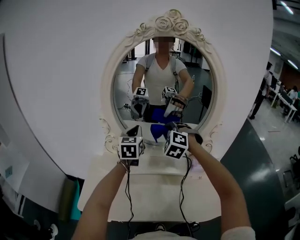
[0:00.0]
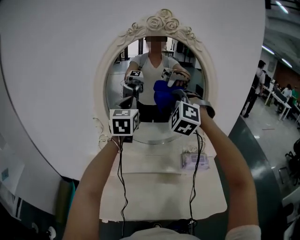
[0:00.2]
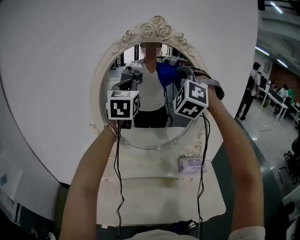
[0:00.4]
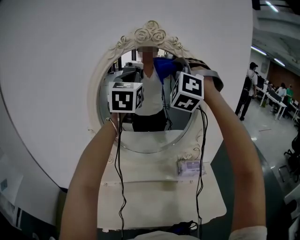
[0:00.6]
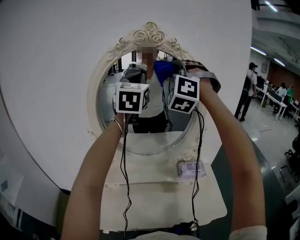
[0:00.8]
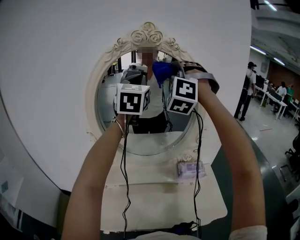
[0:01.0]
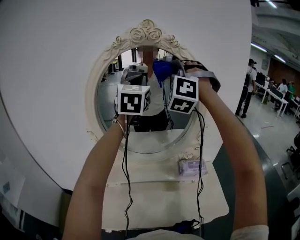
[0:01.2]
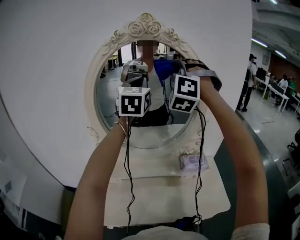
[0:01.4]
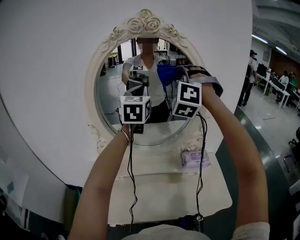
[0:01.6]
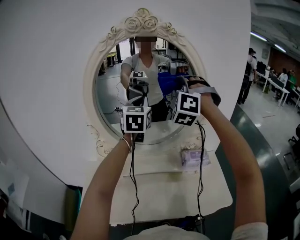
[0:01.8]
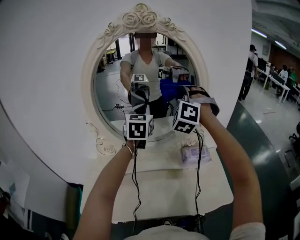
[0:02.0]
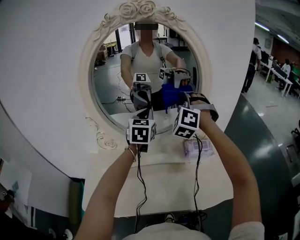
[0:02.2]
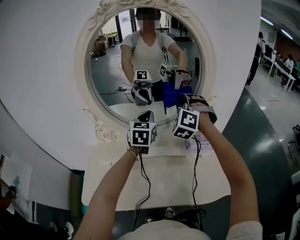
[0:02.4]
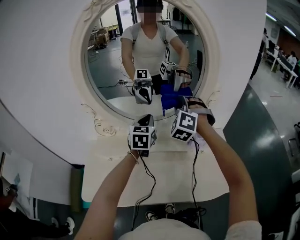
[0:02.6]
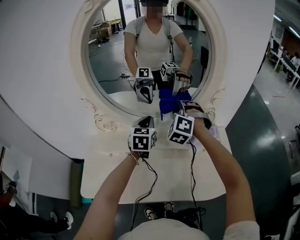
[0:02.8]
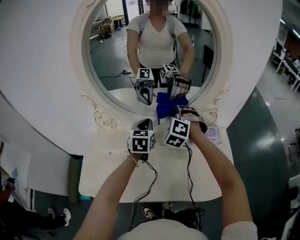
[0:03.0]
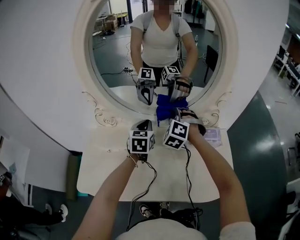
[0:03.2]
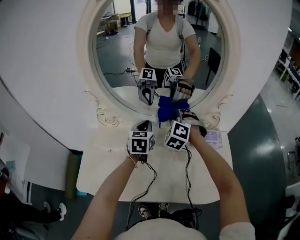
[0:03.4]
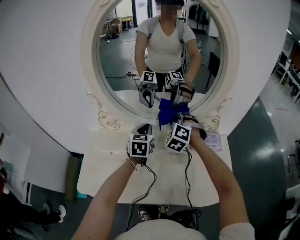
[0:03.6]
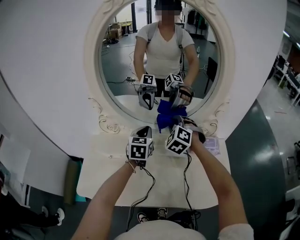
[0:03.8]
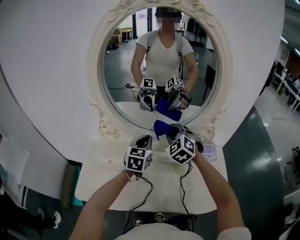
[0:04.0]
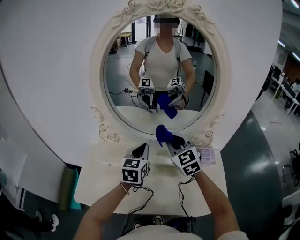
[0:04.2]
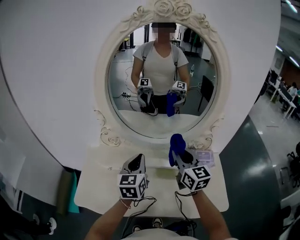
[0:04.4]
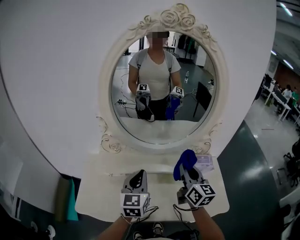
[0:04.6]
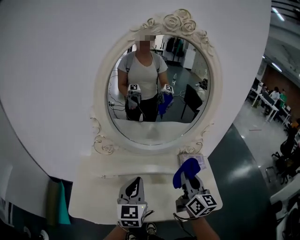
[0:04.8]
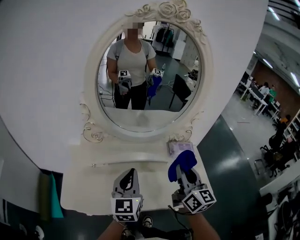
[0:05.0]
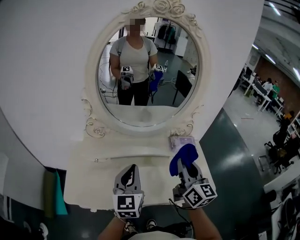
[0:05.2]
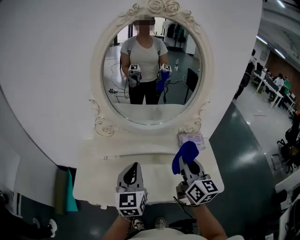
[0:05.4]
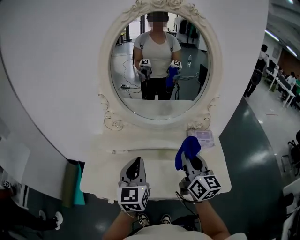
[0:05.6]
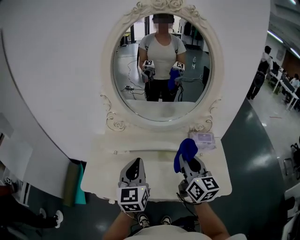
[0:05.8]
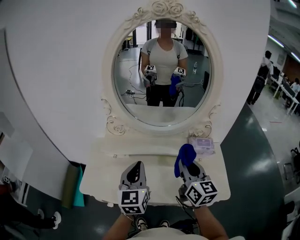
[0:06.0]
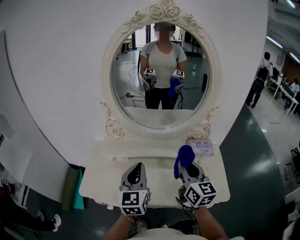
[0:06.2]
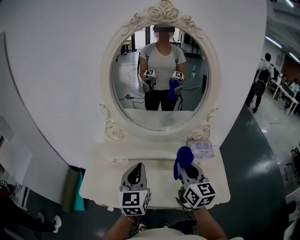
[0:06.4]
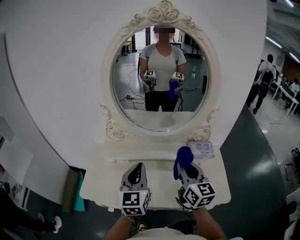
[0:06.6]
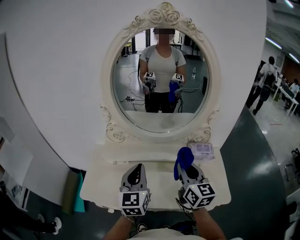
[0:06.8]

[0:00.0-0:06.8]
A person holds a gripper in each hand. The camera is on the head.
0:00.0 to 0:01.4: The right gripper is displaced upward by roughly 30 cm, and tilts its fingers some 30 degrees upward, while the left gripper is displaced upward and to the right by approximately 25 cm.
0:01.4 to 0:02.8: Both grippers travel together downward, approximately 35 cm. The right gripper changes its angle by roughly 30 degrees. Meanwhile the left gripper swivels about 30 degrees.
0:02.8 to 0:04.0: The right gripper ends up some 5 cm from where it was, and changes its angle by roughly 30 degrees.
0:04.0 to 0:05.4: The grippers both shift backward by roughly 20 cm. The right gripper rolls clockwise, seen from behind, by about 60 degrees.
0:05.4 to 0:06.8: The grippers stay close to where they were, moving slightly.

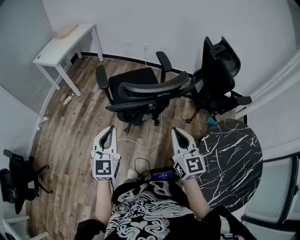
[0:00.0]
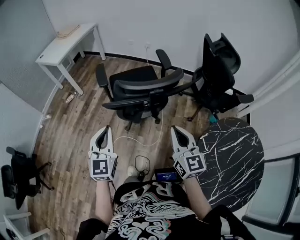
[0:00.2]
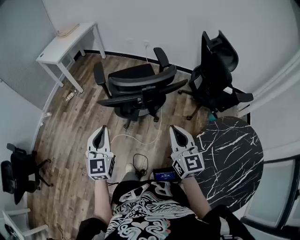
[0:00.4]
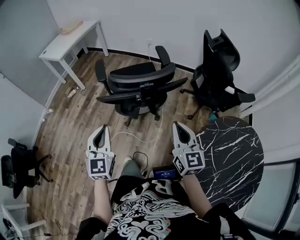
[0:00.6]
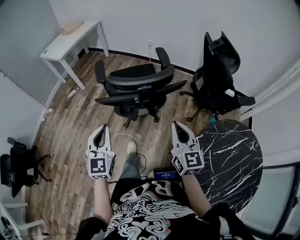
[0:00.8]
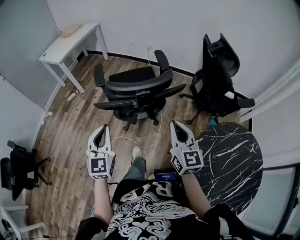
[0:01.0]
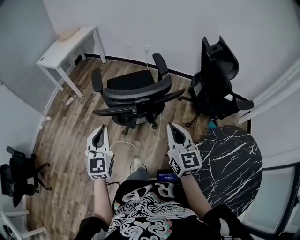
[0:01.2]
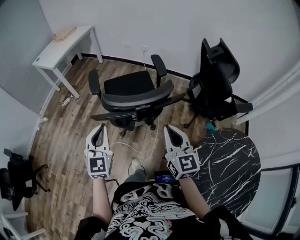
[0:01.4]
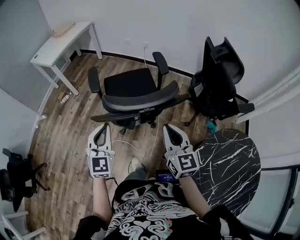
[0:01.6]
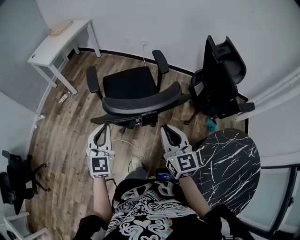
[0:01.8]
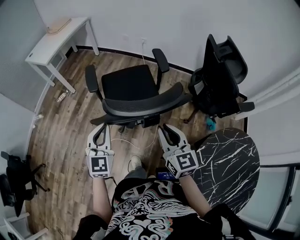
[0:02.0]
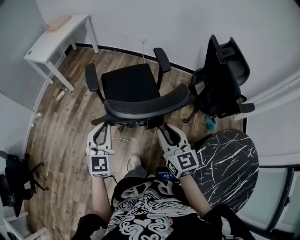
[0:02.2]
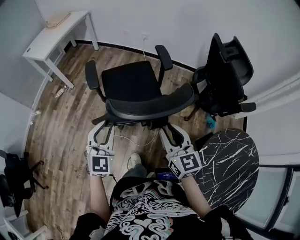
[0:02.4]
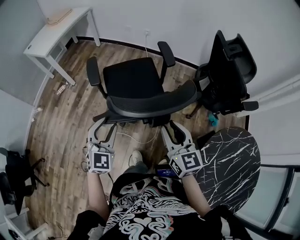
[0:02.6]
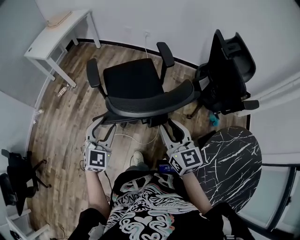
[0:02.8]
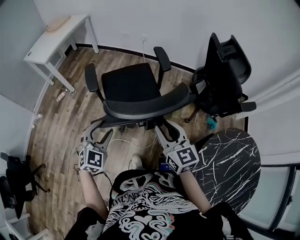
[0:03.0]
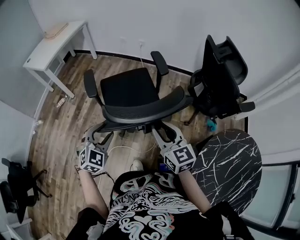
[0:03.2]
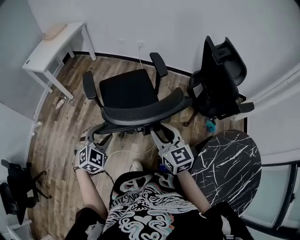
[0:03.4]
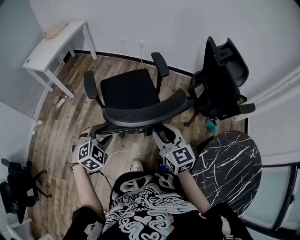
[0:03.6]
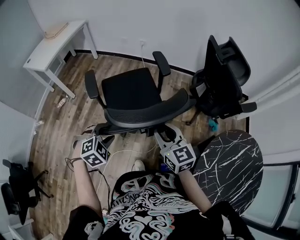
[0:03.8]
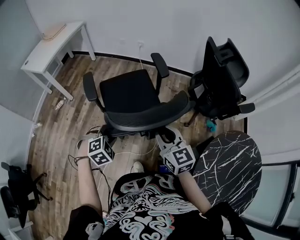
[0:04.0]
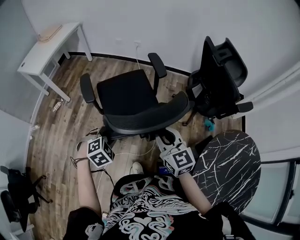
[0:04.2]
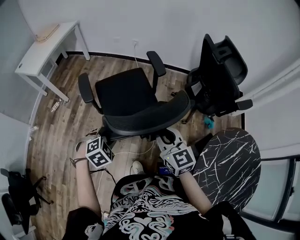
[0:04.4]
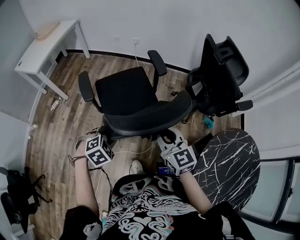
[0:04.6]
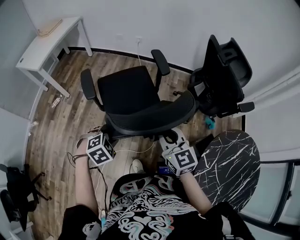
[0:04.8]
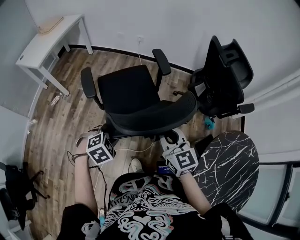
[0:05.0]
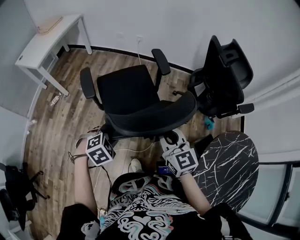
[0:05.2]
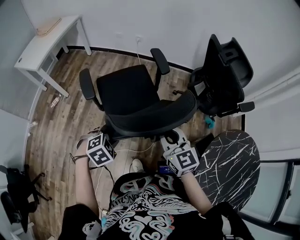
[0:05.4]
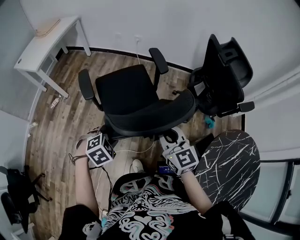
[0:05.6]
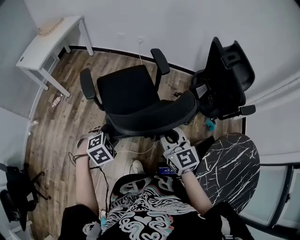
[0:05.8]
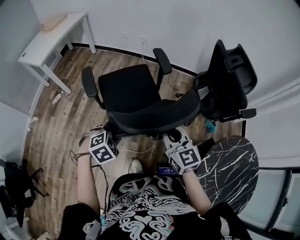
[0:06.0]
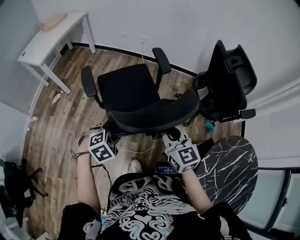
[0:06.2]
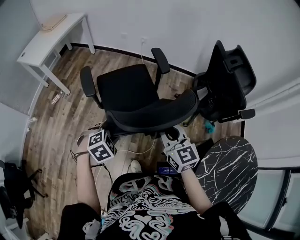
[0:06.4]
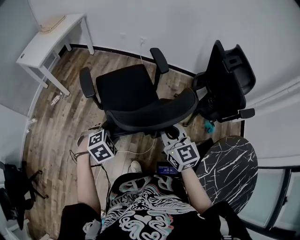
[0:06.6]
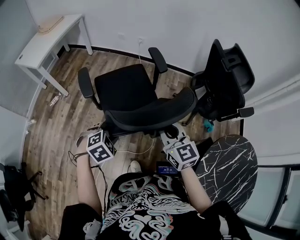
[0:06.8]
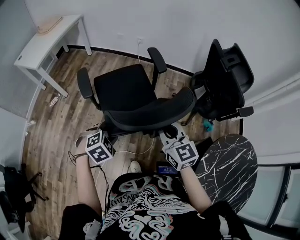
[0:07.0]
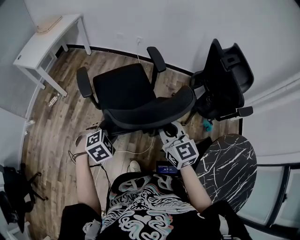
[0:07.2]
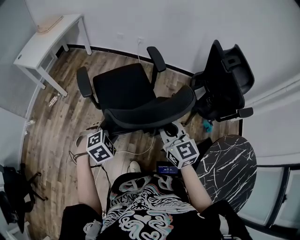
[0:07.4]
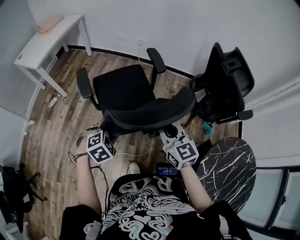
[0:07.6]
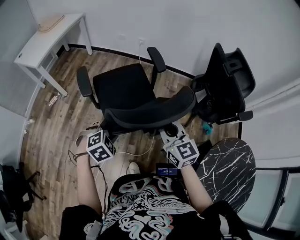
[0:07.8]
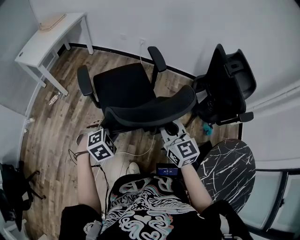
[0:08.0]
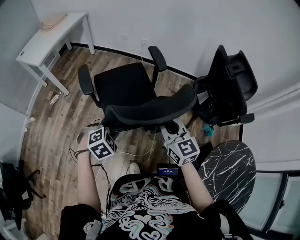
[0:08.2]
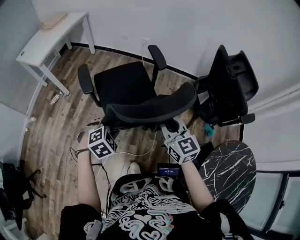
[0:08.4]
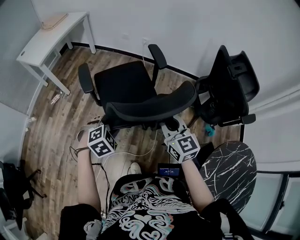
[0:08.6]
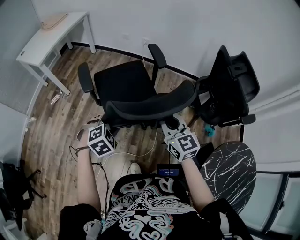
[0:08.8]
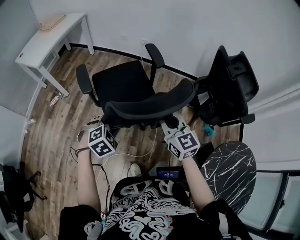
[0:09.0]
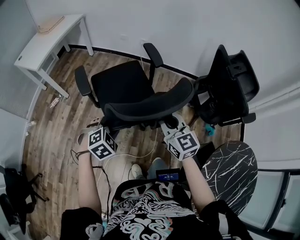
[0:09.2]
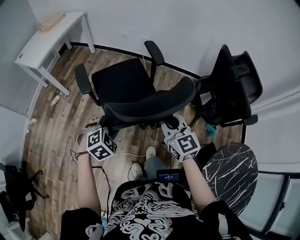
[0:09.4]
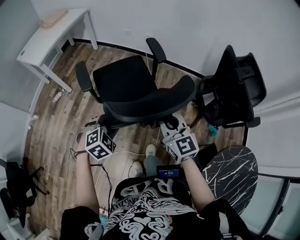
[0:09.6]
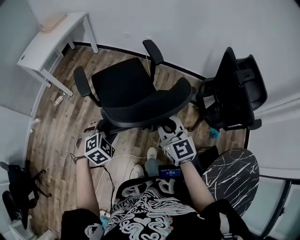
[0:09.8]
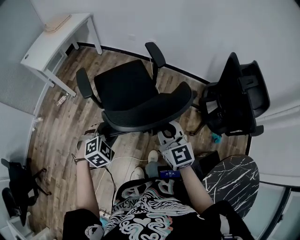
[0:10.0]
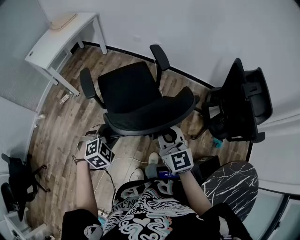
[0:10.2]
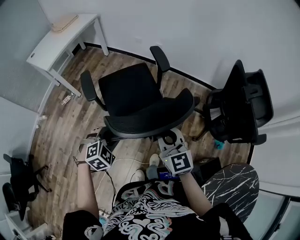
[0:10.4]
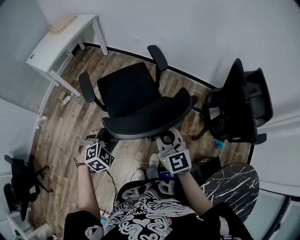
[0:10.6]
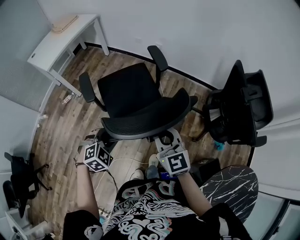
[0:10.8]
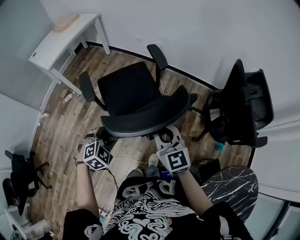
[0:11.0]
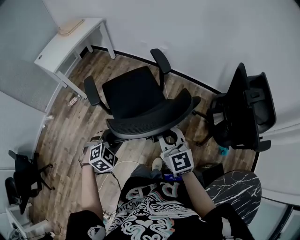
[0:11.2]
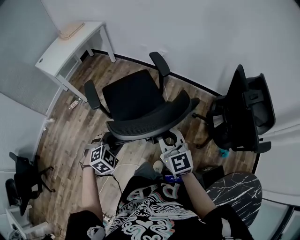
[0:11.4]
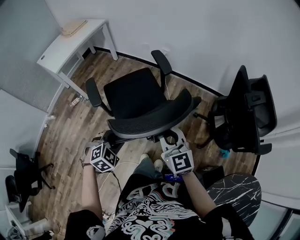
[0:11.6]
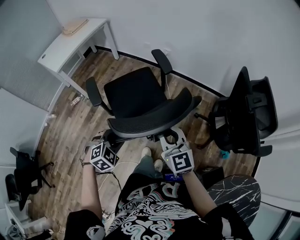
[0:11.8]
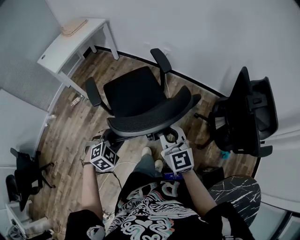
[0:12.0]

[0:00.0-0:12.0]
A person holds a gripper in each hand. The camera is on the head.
0:00.0 to 0:01.6: Both grippers move forward and to the right, roughly 10 cm.
0:01.6 to 0:03.0: The left gripper shifts approximately 10 cm downward, changes its angle by approximately 30 degrees, and opens its fingers, while the right gripper moves some 10 cm.
0:03.0 to 0:04.4: The left gripper heads downward, covering approximately 5 cm, and tilts its fingers about 40 degrees downward.
0:04.4 to 0:06.0: The grippers move only a little.
0:06.0 to 0:07.6: The grippers make only small movements.
0:07.6 to 0:09.0: The two grippers go roughly 5 cm forward.
0:09.0 to 0:10.4: The right gripper moves forward, approximately 5 cm.
0:10.4 to 0:12.0: The right gripper changes place by roughly 5 cm.

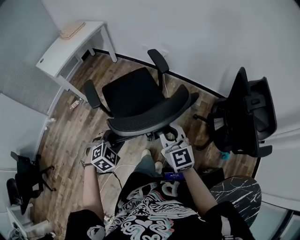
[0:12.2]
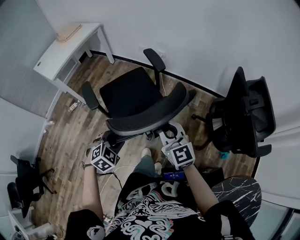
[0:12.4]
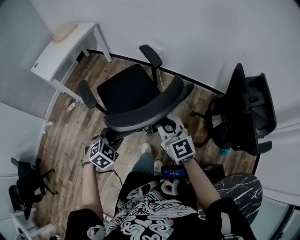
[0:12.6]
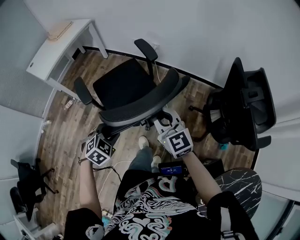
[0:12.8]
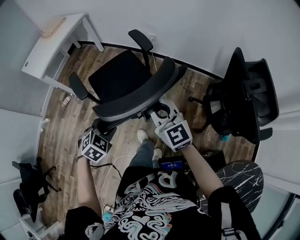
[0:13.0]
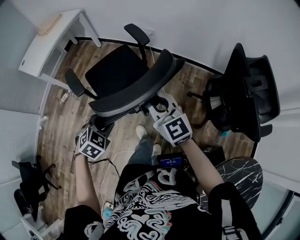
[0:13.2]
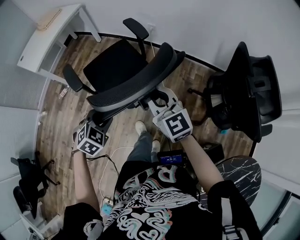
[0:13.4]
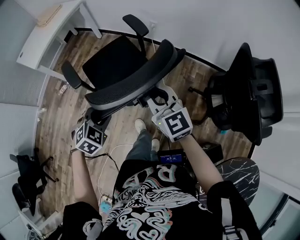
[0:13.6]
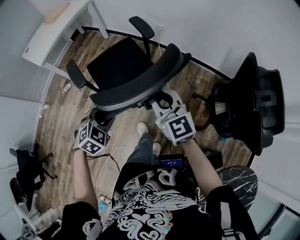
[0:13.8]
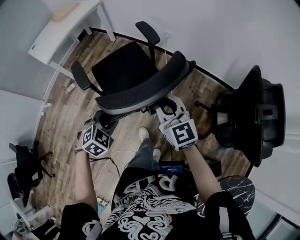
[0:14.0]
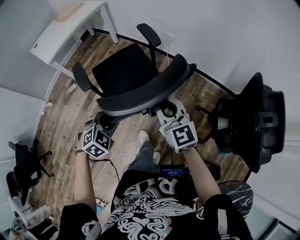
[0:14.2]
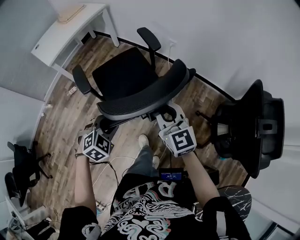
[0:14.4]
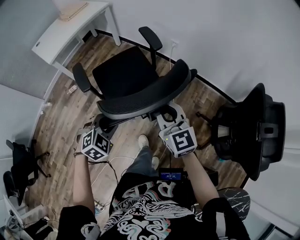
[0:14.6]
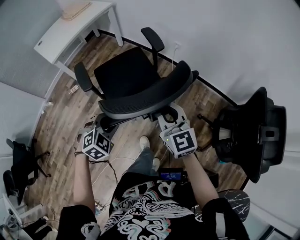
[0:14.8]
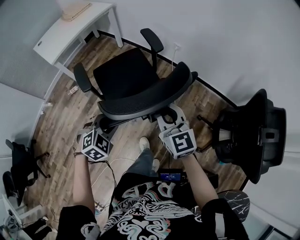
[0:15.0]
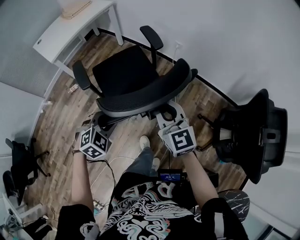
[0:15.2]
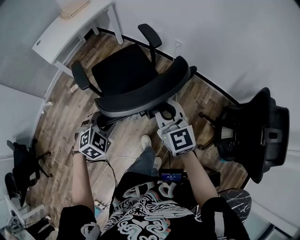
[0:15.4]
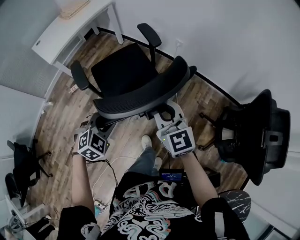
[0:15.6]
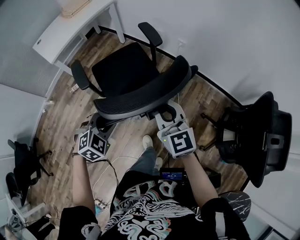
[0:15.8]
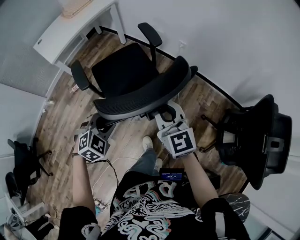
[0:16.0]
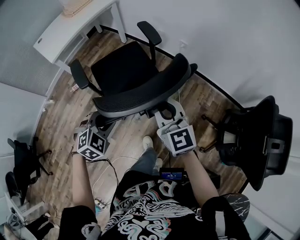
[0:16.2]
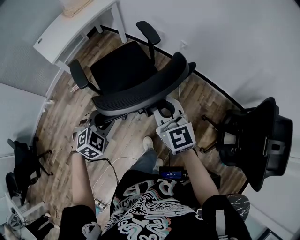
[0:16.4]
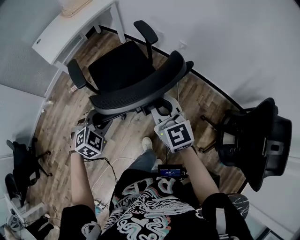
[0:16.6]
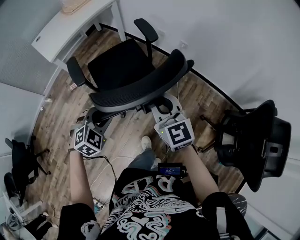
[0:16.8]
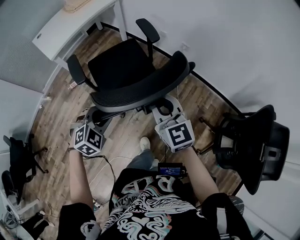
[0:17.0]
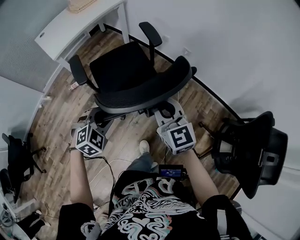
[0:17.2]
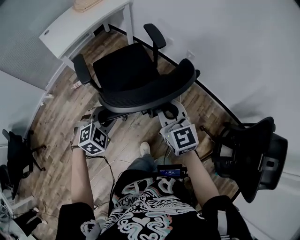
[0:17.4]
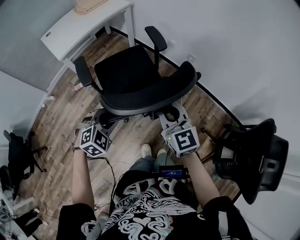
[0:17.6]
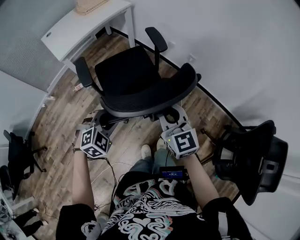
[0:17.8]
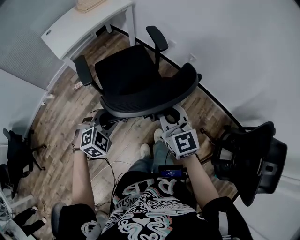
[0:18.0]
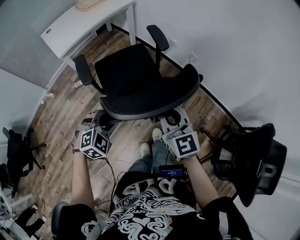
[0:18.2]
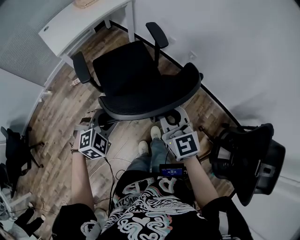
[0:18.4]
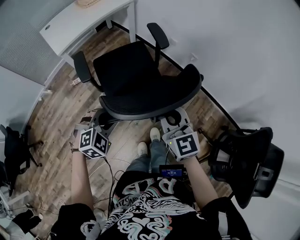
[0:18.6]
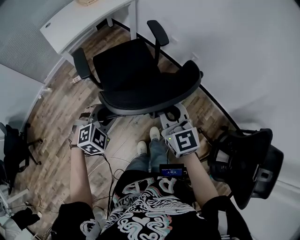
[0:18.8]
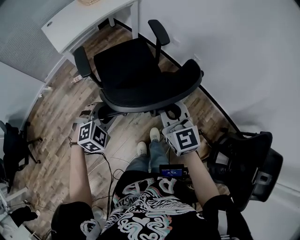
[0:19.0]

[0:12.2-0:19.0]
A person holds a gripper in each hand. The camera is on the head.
0:12.2 to 0:13.6: Both grippers travel together forward, approximately 10 cm.
0:13.6 to 0:15.0: The grippers both shift forward by some 5 cm.
0:15.0 to 0:16.2: The left gripper changes place by some 5 cm. Meanwhile the right gripper shifts by some 5 cm.
0:16.2 to 0:17.6: The grippers both shift forward by about 5 cm.
0:17.6 to 0:19.0: The grippers stay close to where they were, moving slightly.
